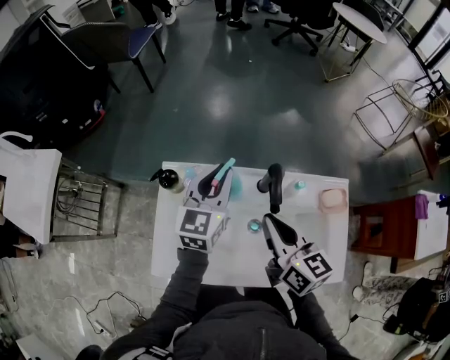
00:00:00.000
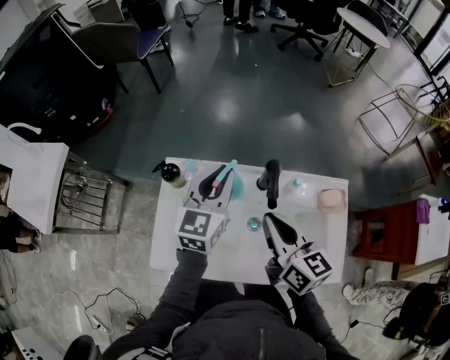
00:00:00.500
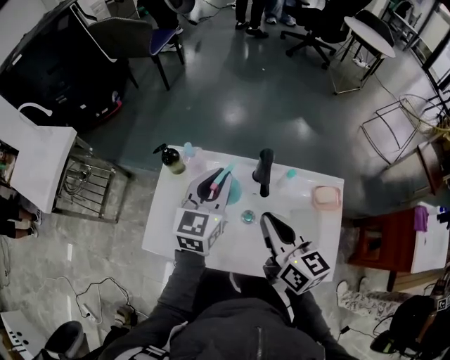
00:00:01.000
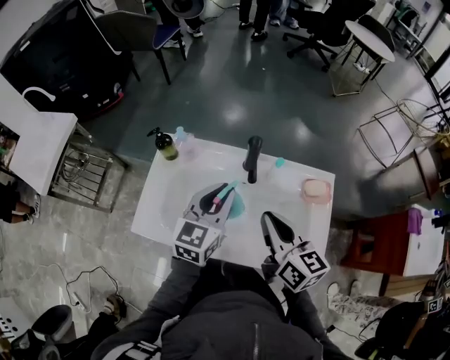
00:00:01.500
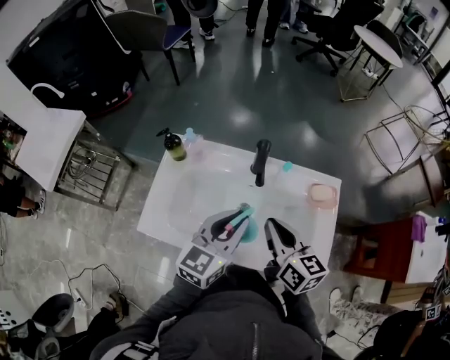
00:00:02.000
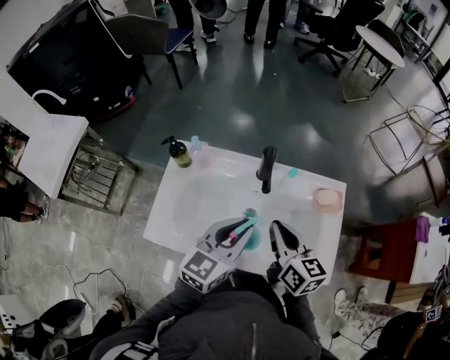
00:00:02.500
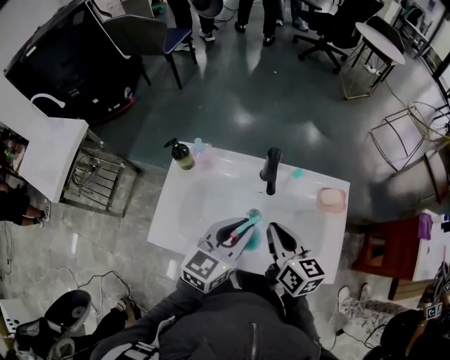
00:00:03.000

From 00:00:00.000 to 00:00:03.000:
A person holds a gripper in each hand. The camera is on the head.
From 00:00:00.000 to 00:00:01.500: The right gripper heads backward and to the right, covering roughly 10 cm, while the left gripper shifts some 15 cm backward.
From 00:00:01.500 to 00:00:03.000: The right gripper shifts by roughly 5 cm. The left gripper shifts approximately 5 cm backward.

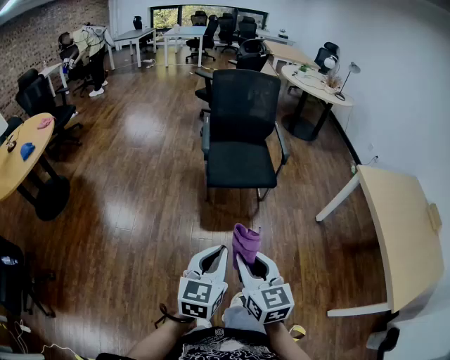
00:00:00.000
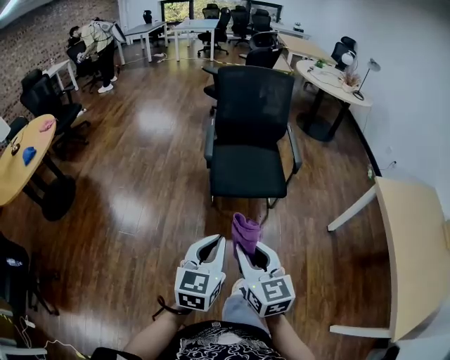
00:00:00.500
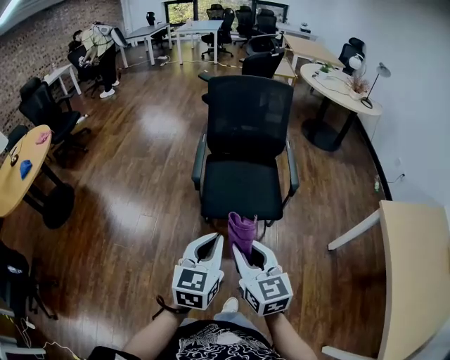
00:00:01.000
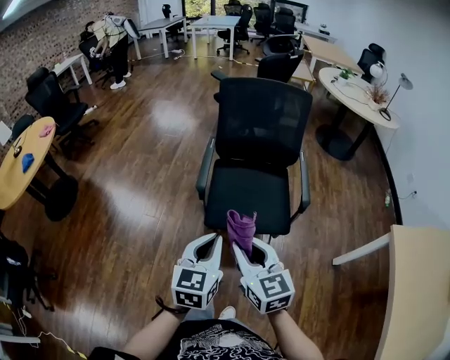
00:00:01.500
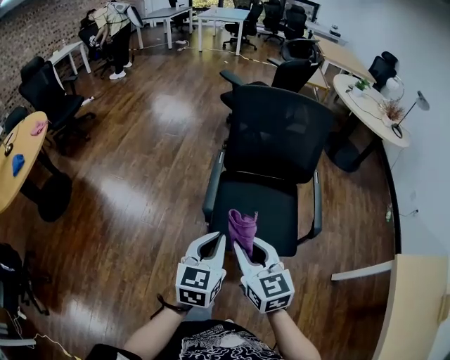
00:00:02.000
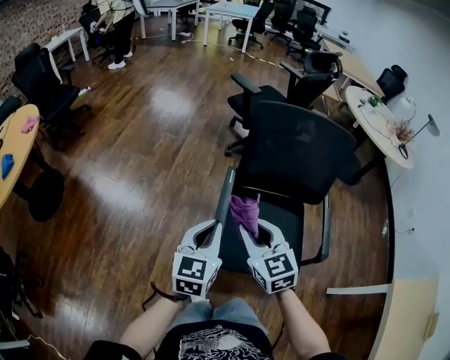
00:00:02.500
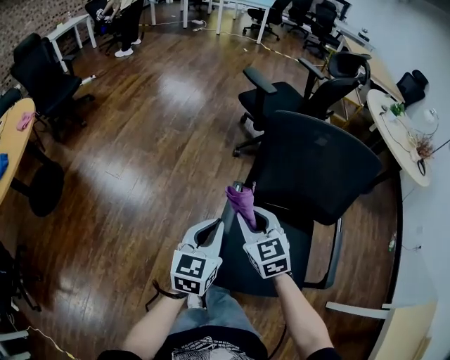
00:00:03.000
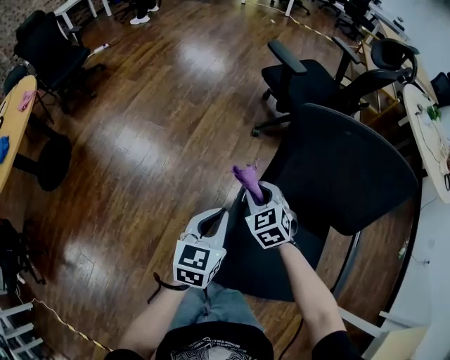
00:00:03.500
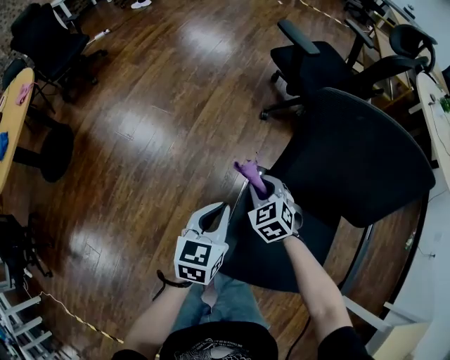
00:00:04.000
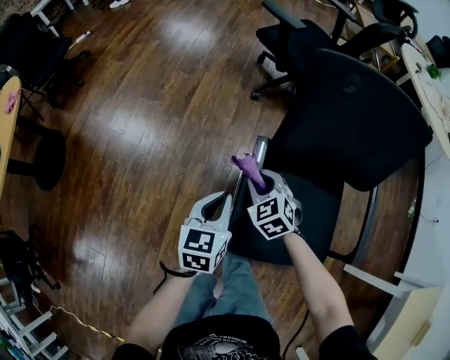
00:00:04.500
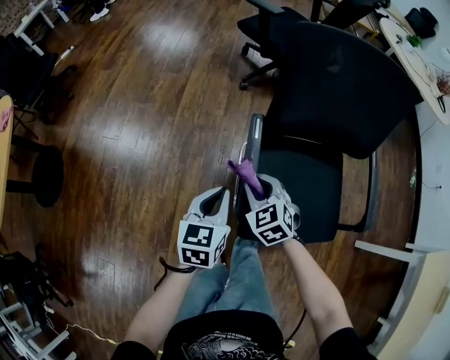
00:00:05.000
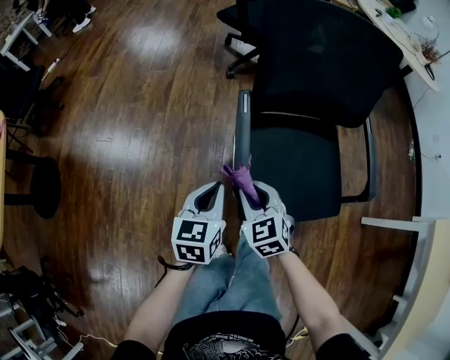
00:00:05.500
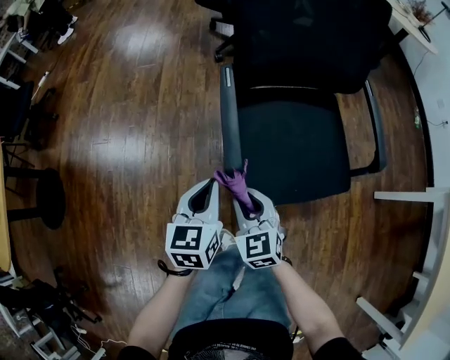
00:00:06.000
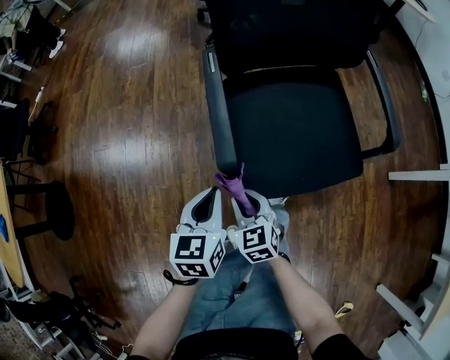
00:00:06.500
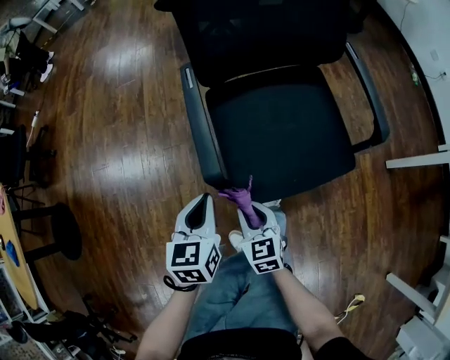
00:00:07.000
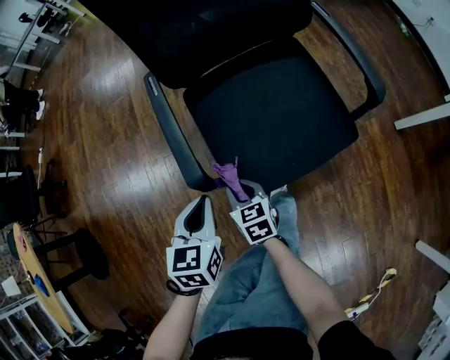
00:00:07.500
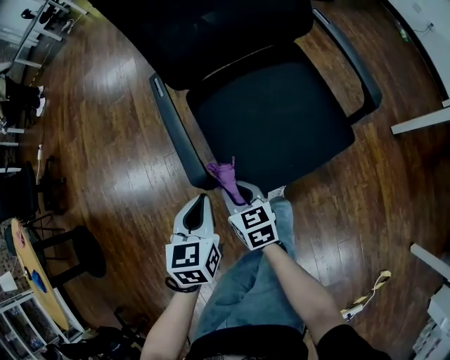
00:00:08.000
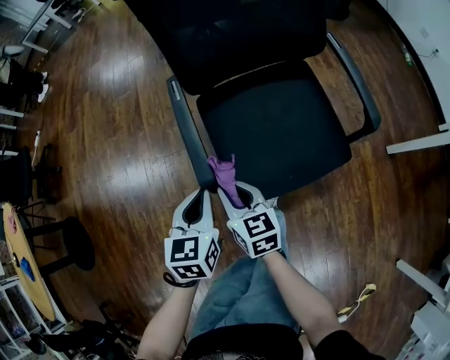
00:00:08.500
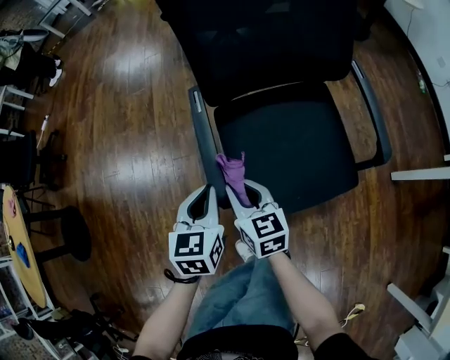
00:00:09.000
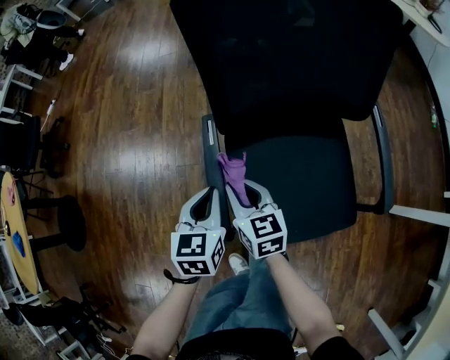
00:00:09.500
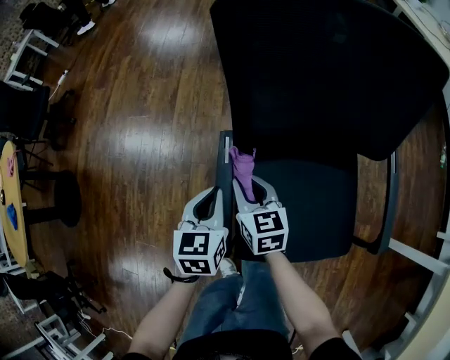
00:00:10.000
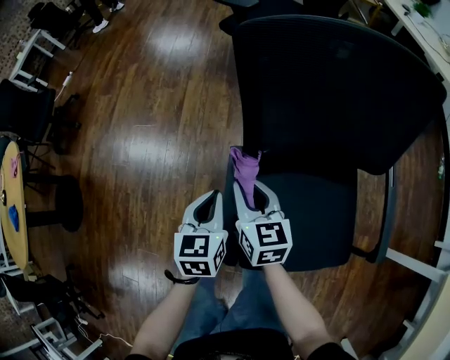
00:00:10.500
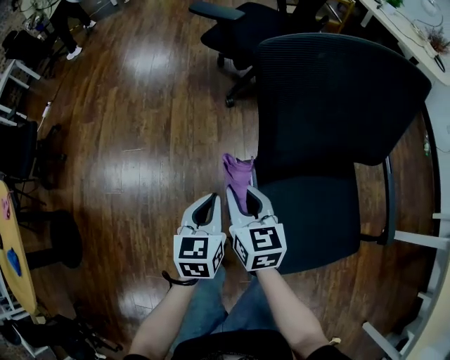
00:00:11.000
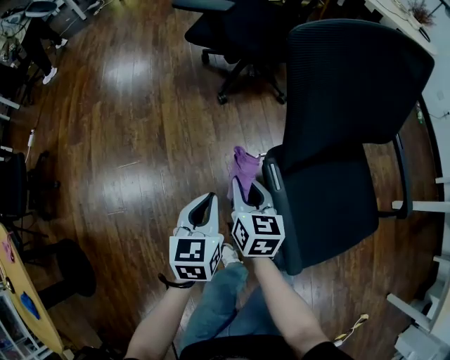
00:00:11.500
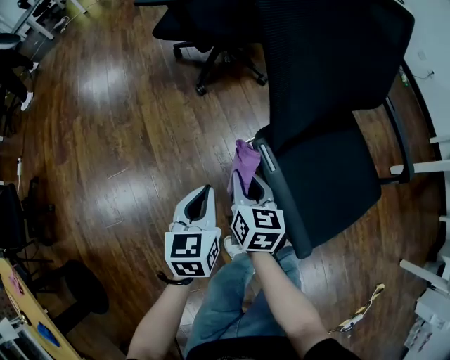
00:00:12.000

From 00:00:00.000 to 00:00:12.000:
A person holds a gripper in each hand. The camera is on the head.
From 00:00:00.000 to 00:00:02.000: Both grippers are carried forward, approximately 50 cm.
From 00:00:02.000 to 00:00:04.000: Both grippers move forward and downward, about 50 cm. The right gripper swivels approximately 40 degrees.
From 00:00:04.000 to 00:00:06.000: The left gripper is displaced backward by approximately 20 cm; the right gripper goes some 30 cm backward, and swivels approximately 30 degrees.
From 00:00:06.000 to 00:00:08.000: The right gripper shifts about 10 cm downward, and changes its angle by about 40 degrees; the left gripper heads to the right, covering approximately 5 cm.
From 00:00:08.000 to 00:00:10.000: The two grippers go roughly 25 cm forward.
From 00:00:10.000 to 00:00:12.000: The left gripper changes place by about 15 cm, and rotates approximately 30 degrees. The right gripper reaches about 10 cm upward, then returns, and turns by approximately 40 degrees.

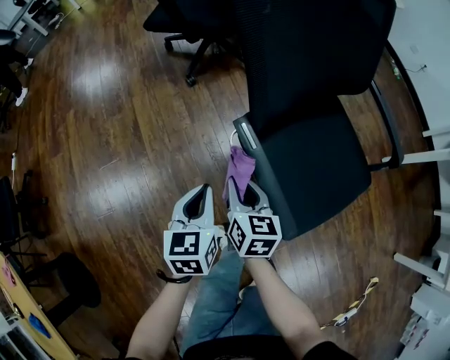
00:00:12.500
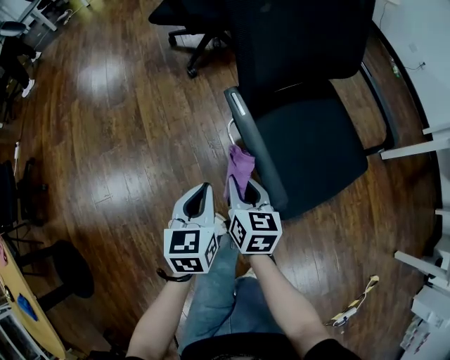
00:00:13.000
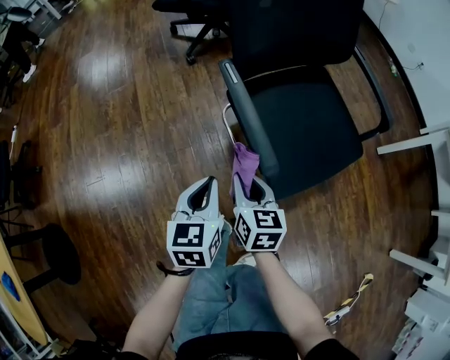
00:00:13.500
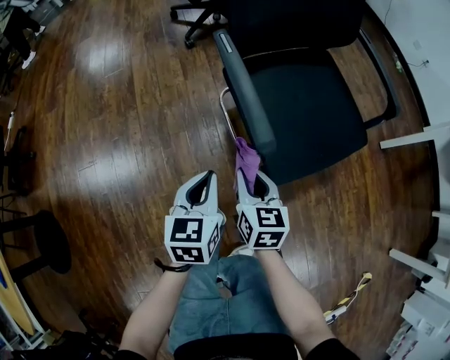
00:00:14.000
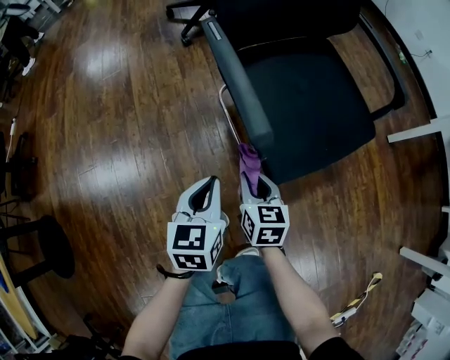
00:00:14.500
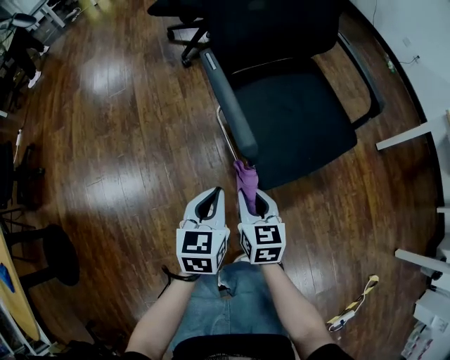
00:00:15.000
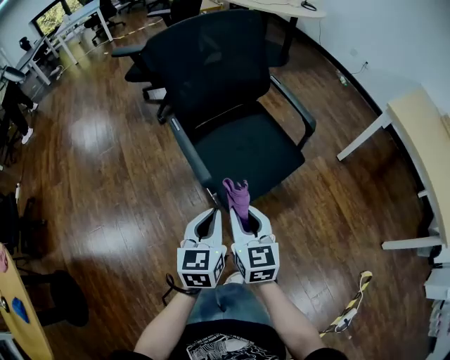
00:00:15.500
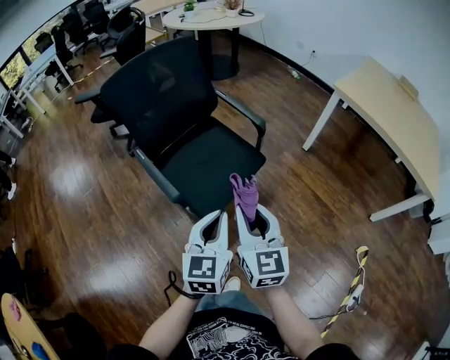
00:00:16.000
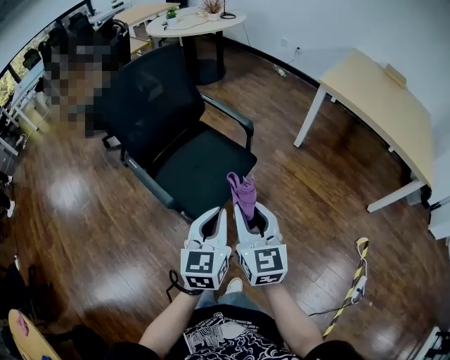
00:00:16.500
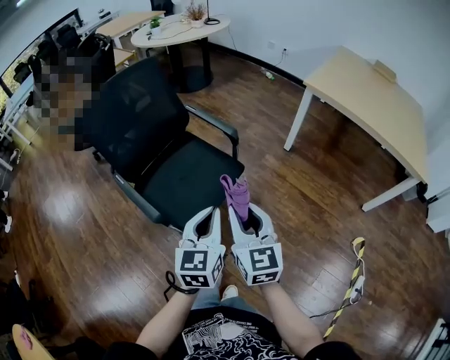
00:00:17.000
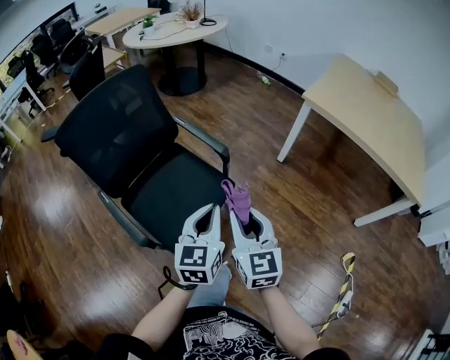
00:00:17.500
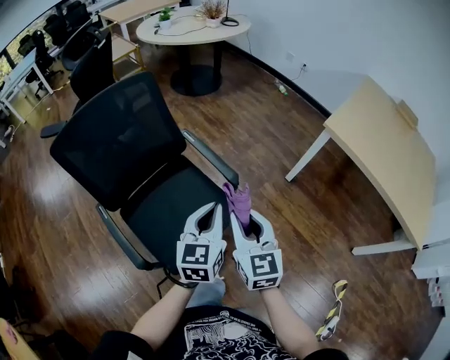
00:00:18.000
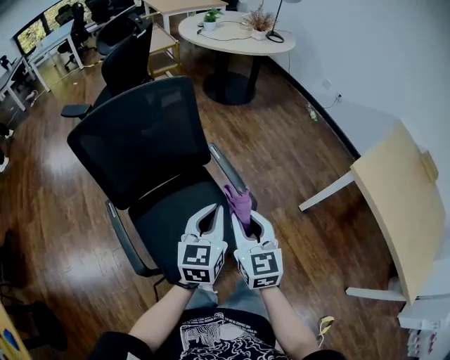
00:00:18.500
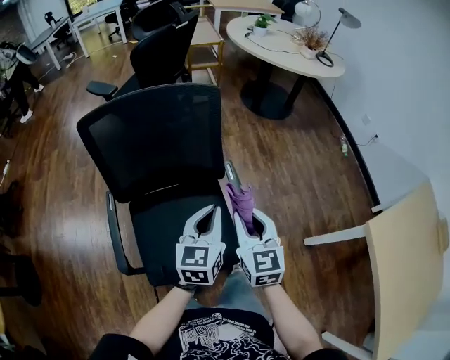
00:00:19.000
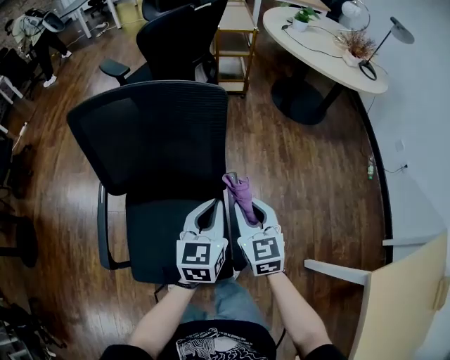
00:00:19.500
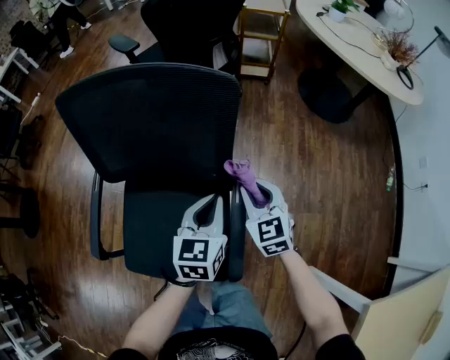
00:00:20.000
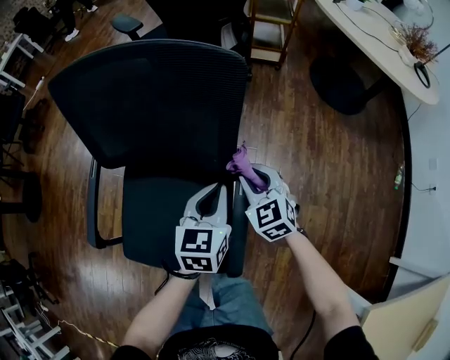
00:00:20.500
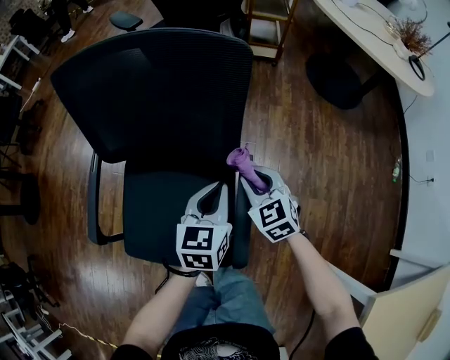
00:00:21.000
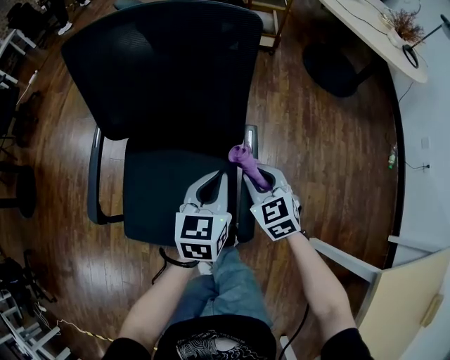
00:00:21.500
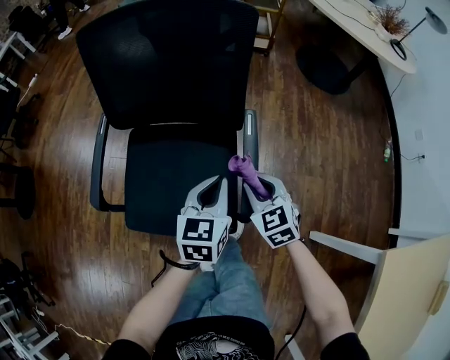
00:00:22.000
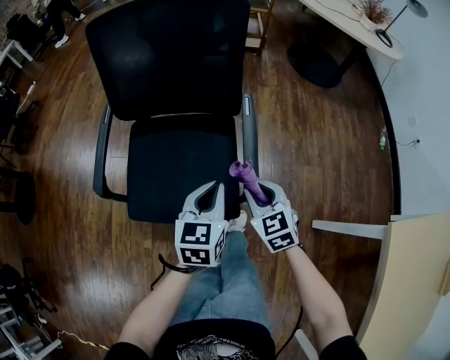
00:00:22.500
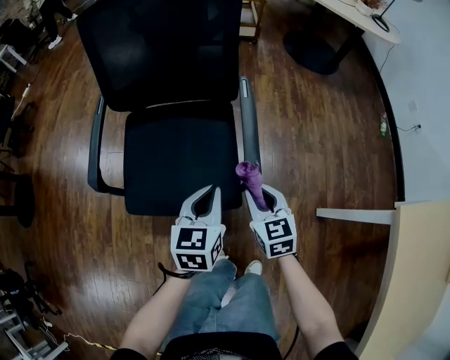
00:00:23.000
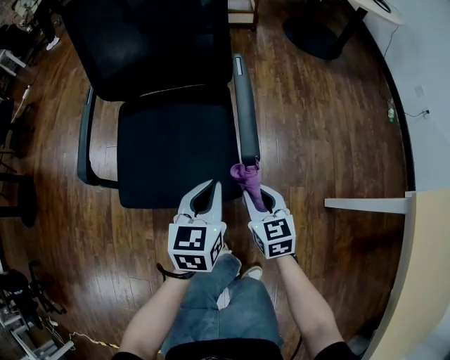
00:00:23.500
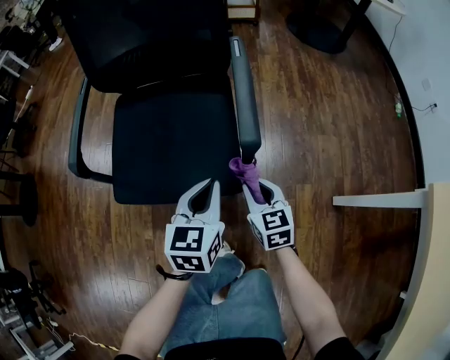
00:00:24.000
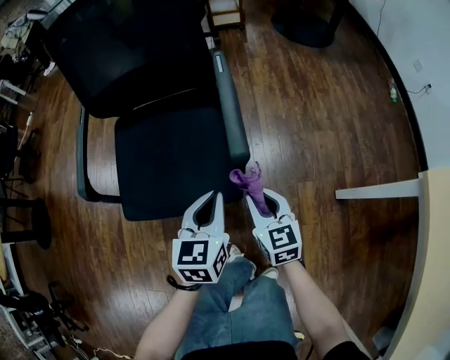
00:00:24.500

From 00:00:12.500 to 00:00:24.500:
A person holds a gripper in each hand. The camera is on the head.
From 00:00:12.500 to 00:00:14.500: The left gripper travels backward, to the right and downward by approximately 25 cm; the right gripper goes roughly 30 cm backward, downward and to the right.
From 00:00:14.500 to 00:00:16.500: Both grippers move upward, roughly 40 cm. The left gripper turns by roughly 40 degrees. Meanwhile the right gripper swivels about 40 degrees.
From 00:00:16.500 to 00:00:18.500: Both grippers move forward, about 35 cm.
From 00:00:18.500 to 00:00:20.500: The right gripper moves approximately 40 cm, and turns by roughly 60 degrees; the left gripper ends up approximately 30 cm from where it was, and rotates some 40 degrees.
From 00:00:20.500 to 00:00:22.500: Both grippers move backward, roughly 25 cm.
From 00:00:22.500 to 00:00:24.500: The grippers both shift downward and backward by roughly 15 cm. The right gripper turns by roughly 20 degrees.
